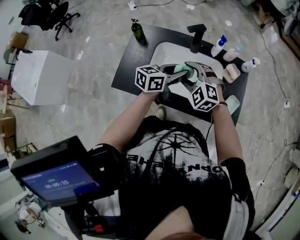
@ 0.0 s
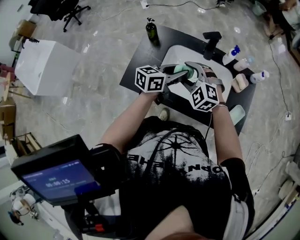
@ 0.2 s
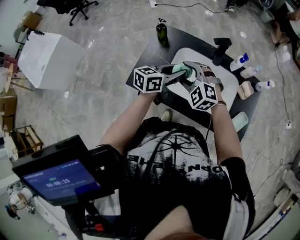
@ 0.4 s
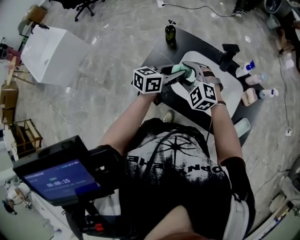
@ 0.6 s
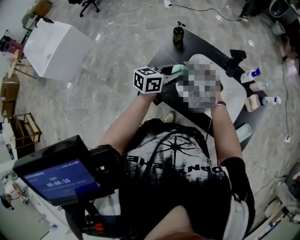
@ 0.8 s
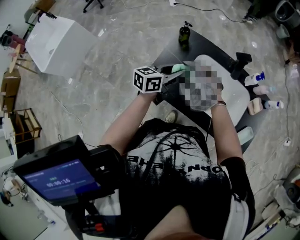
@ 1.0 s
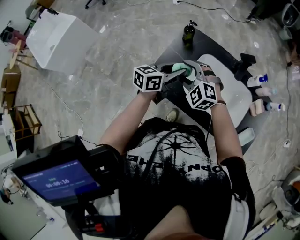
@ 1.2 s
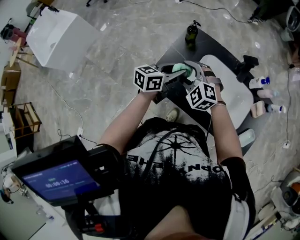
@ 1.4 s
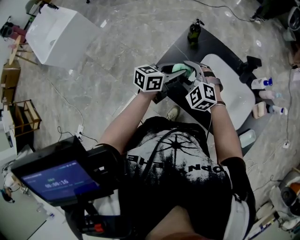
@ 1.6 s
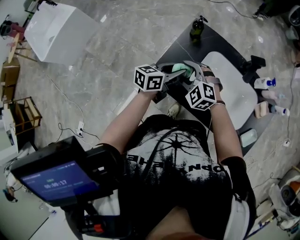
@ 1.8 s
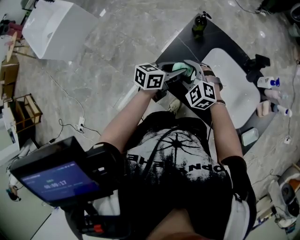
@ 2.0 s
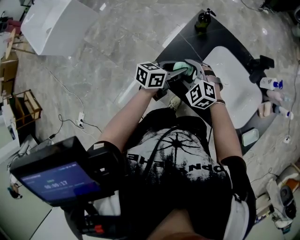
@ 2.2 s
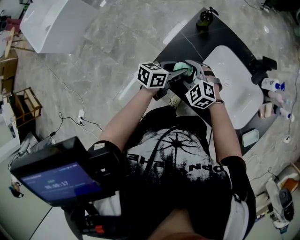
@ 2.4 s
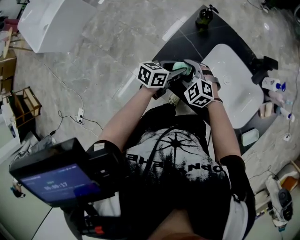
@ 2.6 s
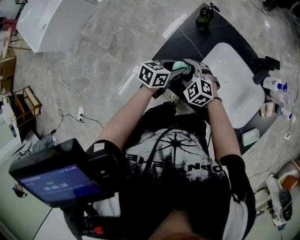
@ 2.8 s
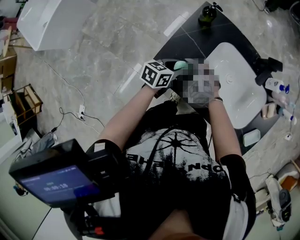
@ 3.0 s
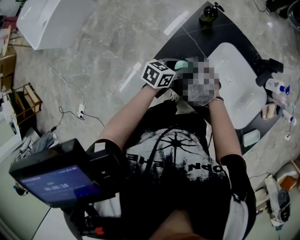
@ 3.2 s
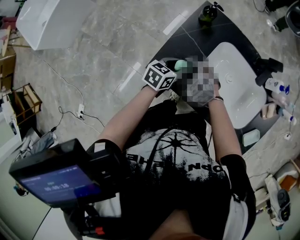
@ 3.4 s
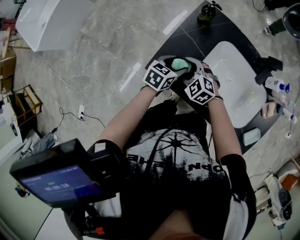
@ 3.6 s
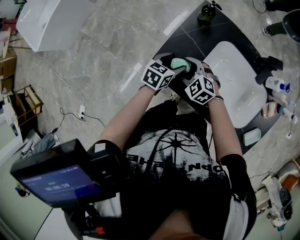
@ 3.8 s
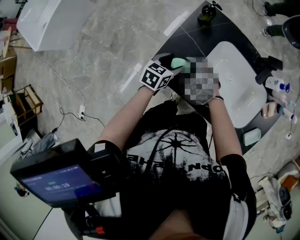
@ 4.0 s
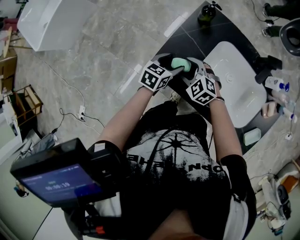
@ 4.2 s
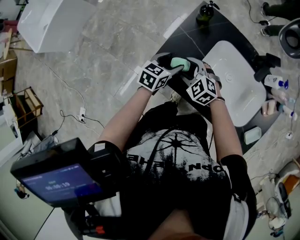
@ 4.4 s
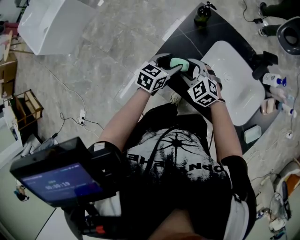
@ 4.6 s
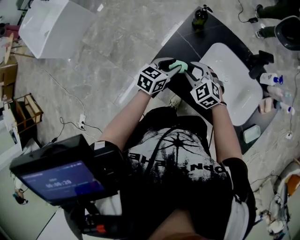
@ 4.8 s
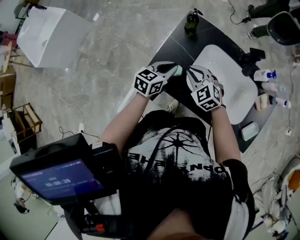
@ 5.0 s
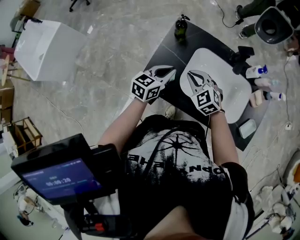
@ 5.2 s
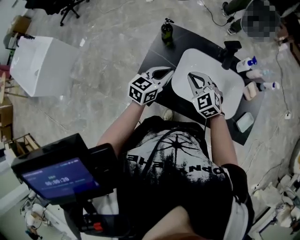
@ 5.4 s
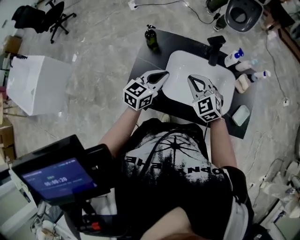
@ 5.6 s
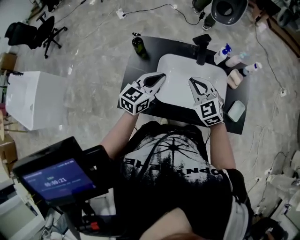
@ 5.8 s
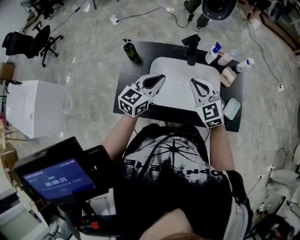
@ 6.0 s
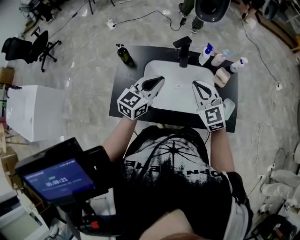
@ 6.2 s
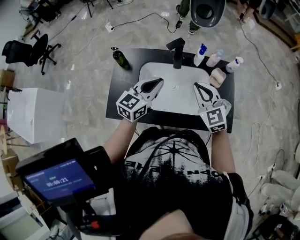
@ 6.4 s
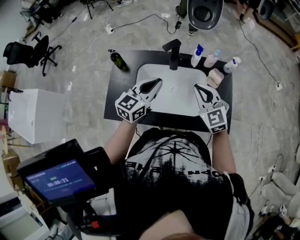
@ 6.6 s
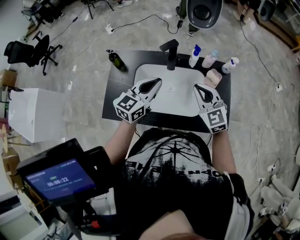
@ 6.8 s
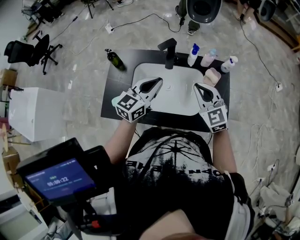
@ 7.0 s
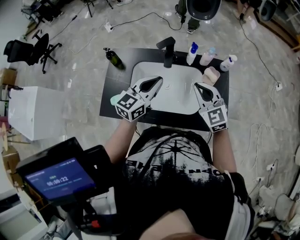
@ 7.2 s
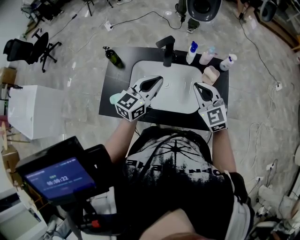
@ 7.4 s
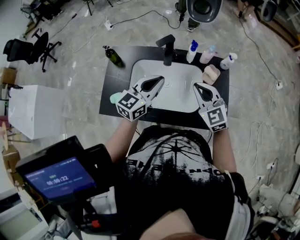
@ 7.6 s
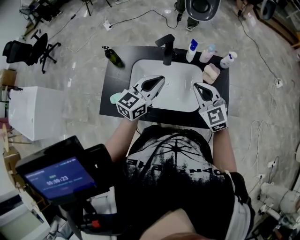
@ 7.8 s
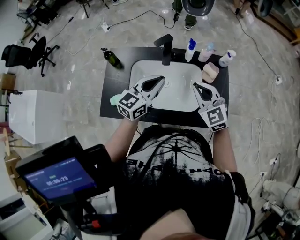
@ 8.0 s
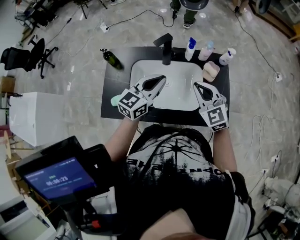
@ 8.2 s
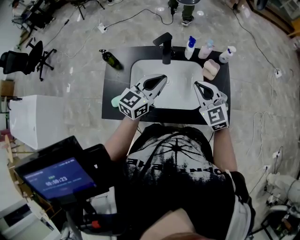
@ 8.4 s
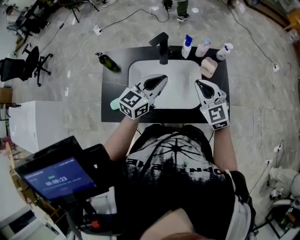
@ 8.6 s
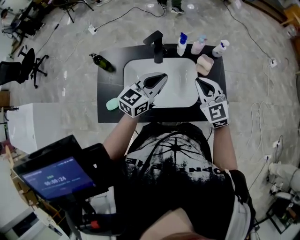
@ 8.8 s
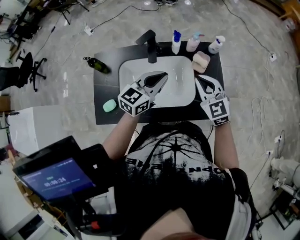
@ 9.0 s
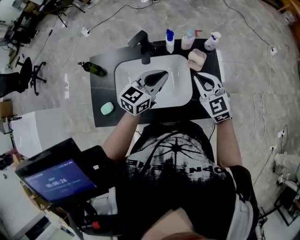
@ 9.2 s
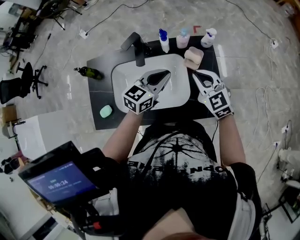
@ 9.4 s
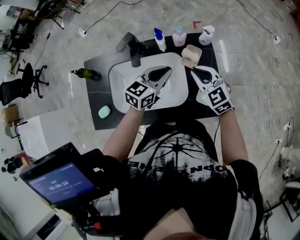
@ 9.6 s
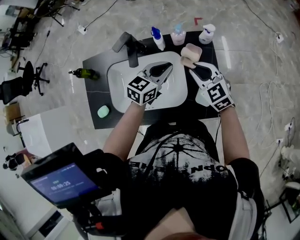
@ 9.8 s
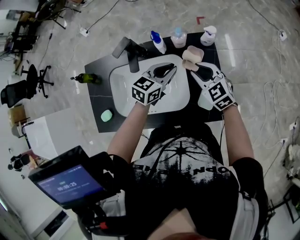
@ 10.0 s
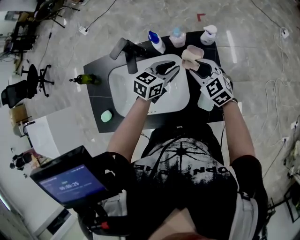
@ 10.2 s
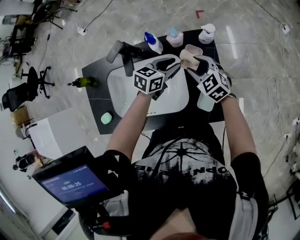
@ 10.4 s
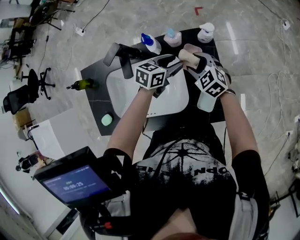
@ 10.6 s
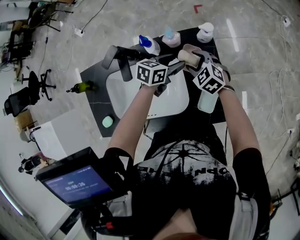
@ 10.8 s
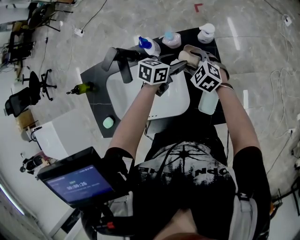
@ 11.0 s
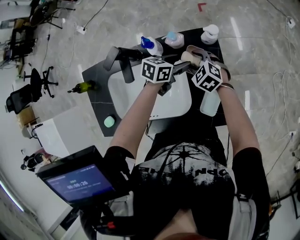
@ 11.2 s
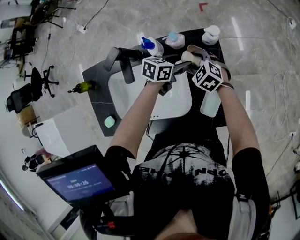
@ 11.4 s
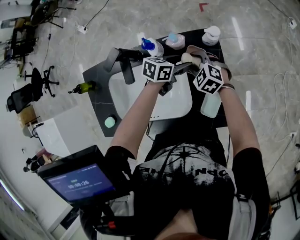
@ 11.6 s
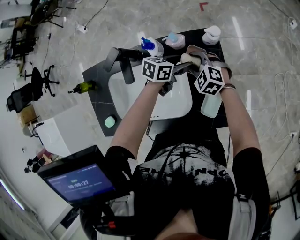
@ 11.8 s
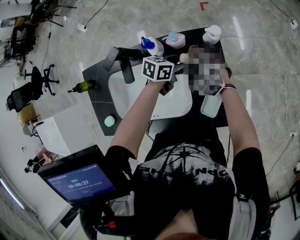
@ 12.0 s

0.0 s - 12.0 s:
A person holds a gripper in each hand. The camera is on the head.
0.0 s - 1.6 s: Both grippers move to the left, some 25 cm.
1.6 s - 3.0 s: The two grippers go some 15 cm downward.
3.0 s - 4.4 s: The left gripper opens up.
4.4 s - 6.0 s: The right gripper moves about 35 cm, turns by about 50 degrees, and closes up. Meanwhile the left gripper is displaced upward by some 20 cm, rotates approximately 40 degrees, and closes.
6.0 s - 7.6 s: Both grippers move to the right, some 15 cm.
7.6 s - 9.0 s: The left gripper goes some 5 cm to the right, while the right gripper changes place by approximately 5 cm.
9.0 s - 10.4 s: The left gripper moves downward, forward and to the right, about 25 cm, swivels about 30 degrees, and opens up. The right gripper shifts roughly 20 cm downward and forward, and opens up.
10.4 s - 12.0 s: The left gripper shifts roughly 5 cm to the right, and opens its fingers.

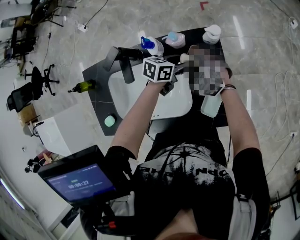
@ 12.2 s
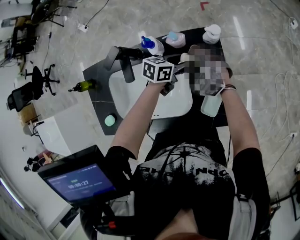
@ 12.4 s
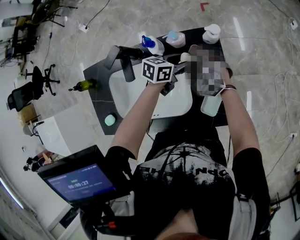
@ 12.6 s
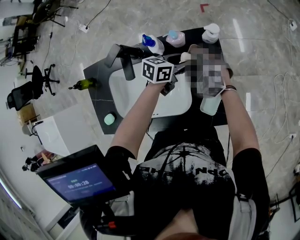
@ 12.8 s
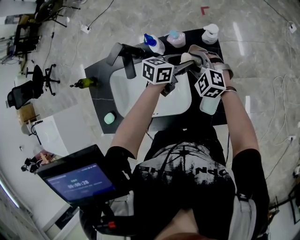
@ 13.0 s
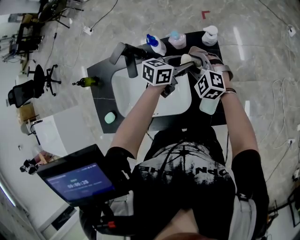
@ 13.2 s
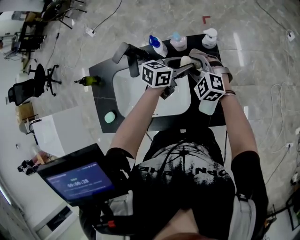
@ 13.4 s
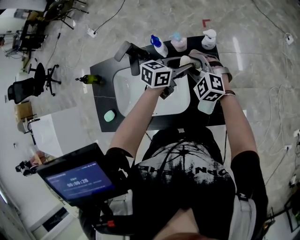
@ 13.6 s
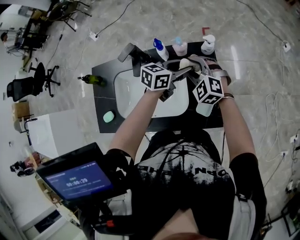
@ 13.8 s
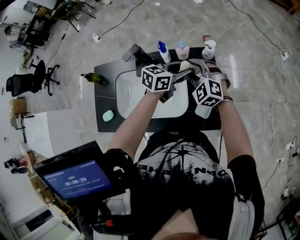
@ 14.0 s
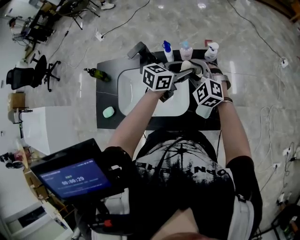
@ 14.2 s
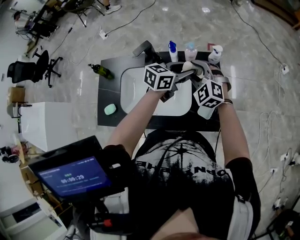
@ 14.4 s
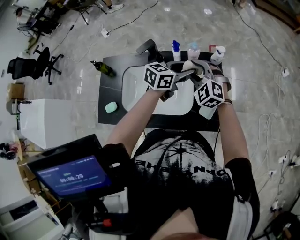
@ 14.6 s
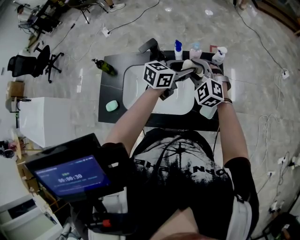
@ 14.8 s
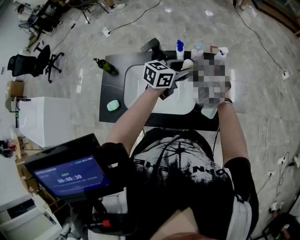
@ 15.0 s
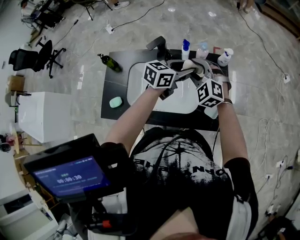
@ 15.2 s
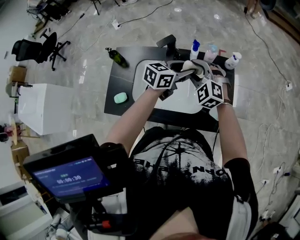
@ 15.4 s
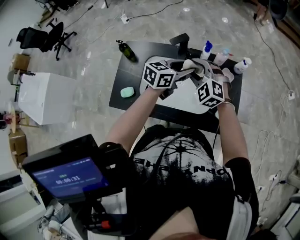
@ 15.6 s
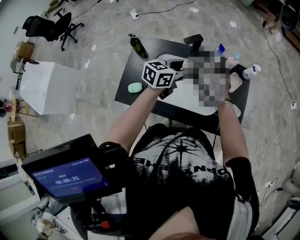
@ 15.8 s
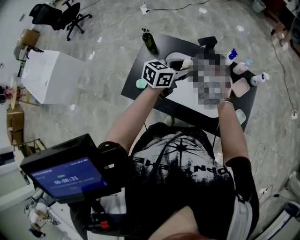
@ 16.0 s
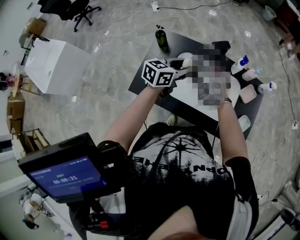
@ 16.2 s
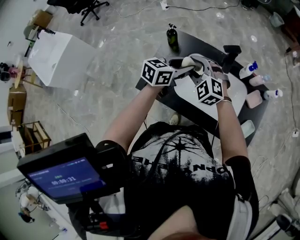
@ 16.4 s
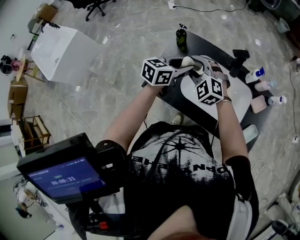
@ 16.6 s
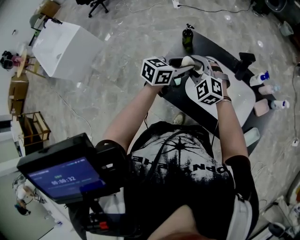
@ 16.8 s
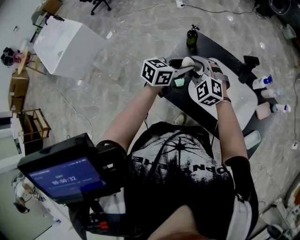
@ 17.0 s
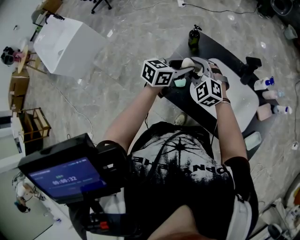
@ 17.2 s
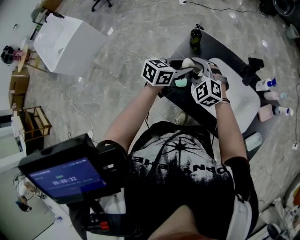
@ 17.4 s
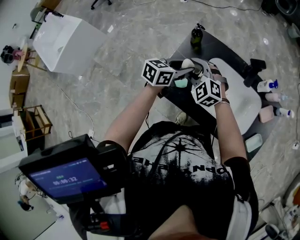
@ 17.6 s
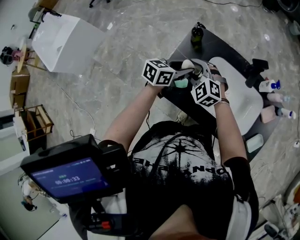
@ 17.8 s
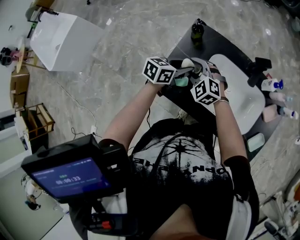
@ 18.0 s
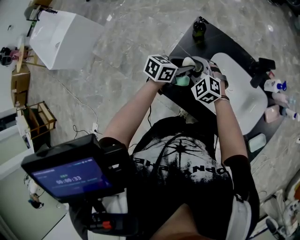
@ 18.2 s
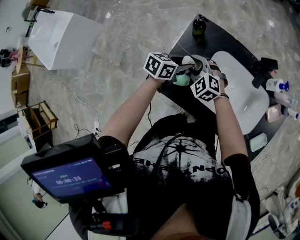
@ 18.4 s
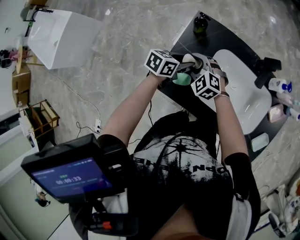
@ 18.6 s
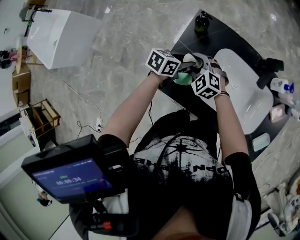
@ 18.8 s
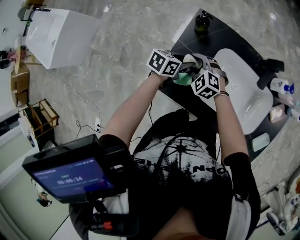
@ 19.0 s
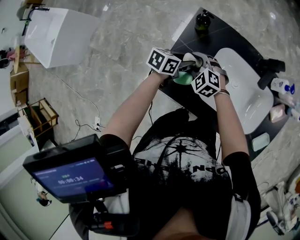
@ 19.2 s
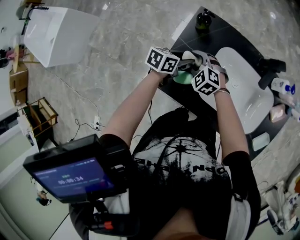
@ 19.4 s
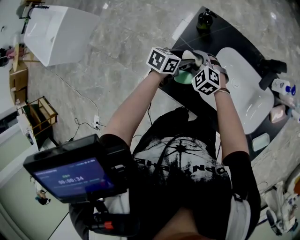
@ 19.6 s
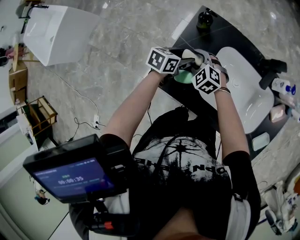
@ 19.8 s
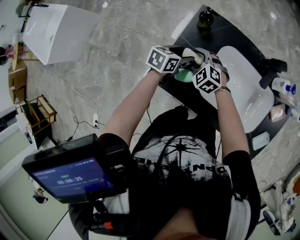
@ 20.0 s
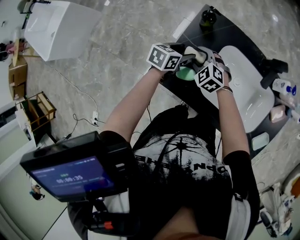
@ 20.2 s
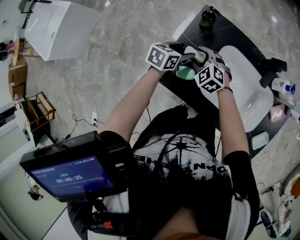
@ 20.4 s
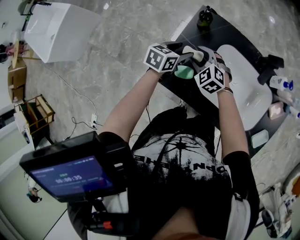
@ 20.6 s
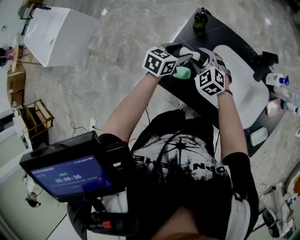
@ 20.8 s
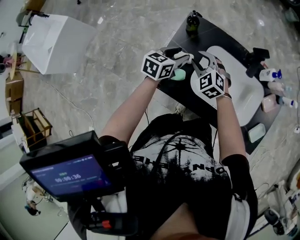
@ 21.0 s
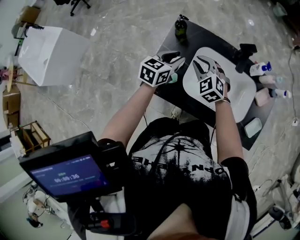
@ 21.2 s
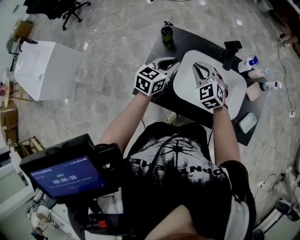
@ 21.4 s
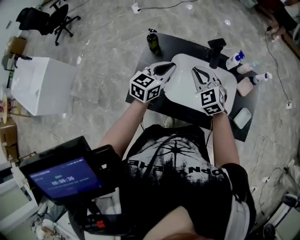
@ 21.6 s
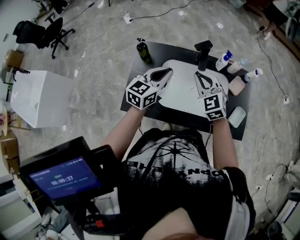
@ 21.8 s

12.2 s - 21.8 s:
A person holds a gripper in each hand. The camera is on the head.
12.2 s - 13.8 s: Both grippers travel together upward, about 10 cm.
13.8 s - 15.4 s: Both grippers travel together to the left and backward, roughly 10 cm.
15.4 s - 17.0 s: The right gripper changes place by approximately 40 cm, and swivels about 30 degrees. The left gripper moves about 40 cm, and swivels approximately 30 degrees.
17.0 s - 18.6 s: Both grippers travel together downward, approximately 15 cm. The left gripper rotates approximately 20 degrees.
18.6 s - 20.2 s: The grippers stay close to where they were, moving slightly.
20.2 s - 21.8 s: The left gripper shifts about 25 cm upward and to the right, changes its angle by approximately 40 degrees, and closes its fingers. Meanwhile the right gripper goes about 35 cm to the right and upward, swivels some 40 degrees, and closes up.

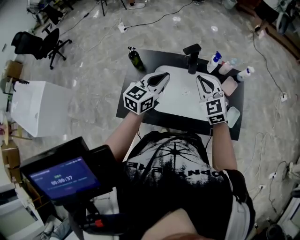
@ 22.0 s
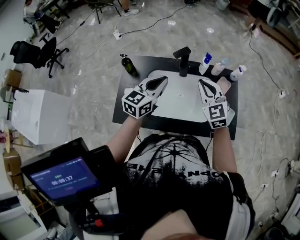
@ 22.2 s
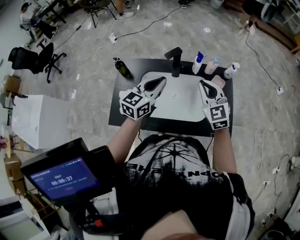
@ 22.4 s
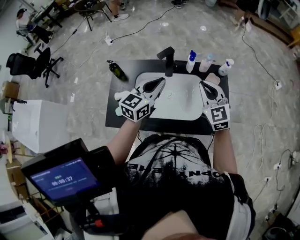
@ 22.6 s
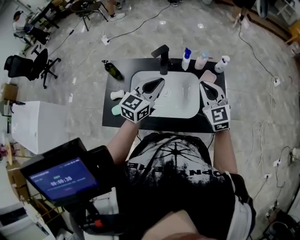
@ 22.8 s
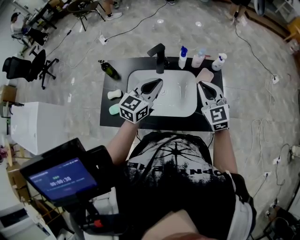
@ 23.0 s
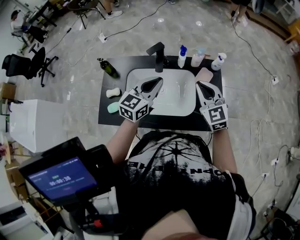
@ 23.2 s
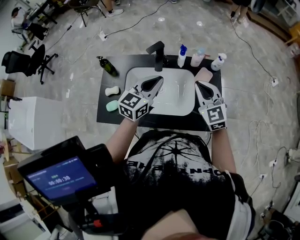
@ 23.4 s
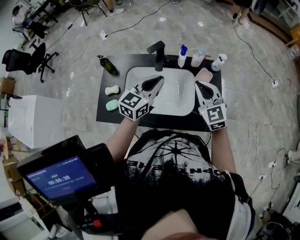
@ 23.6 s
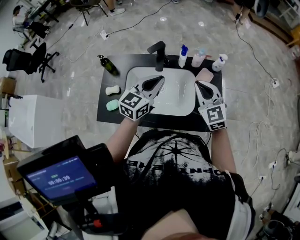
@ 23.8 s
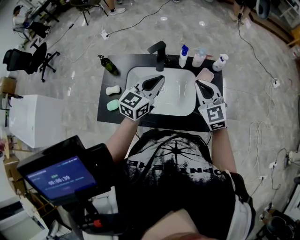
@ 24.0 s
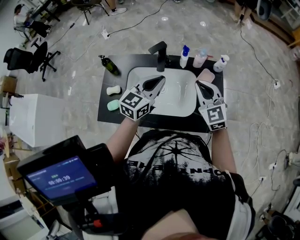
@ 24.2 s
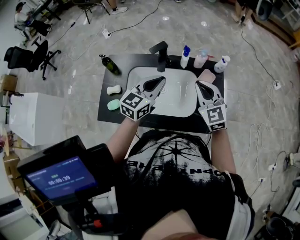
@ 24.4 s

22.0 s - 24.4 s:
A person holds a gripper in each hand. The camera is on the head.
22.0 s - 23.2 s: The grippers both shift to the right by roughly 15 cm.
23.2 s - 24.4 s: The two grippers keep their place.
